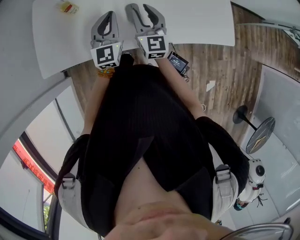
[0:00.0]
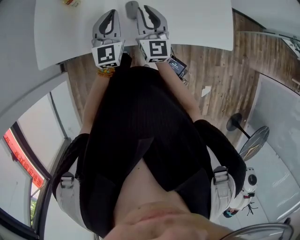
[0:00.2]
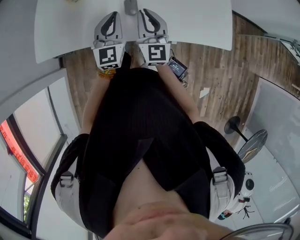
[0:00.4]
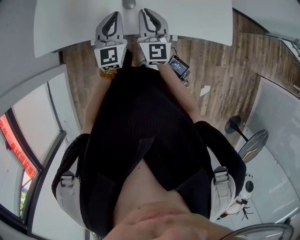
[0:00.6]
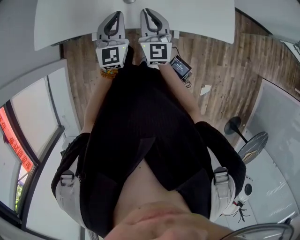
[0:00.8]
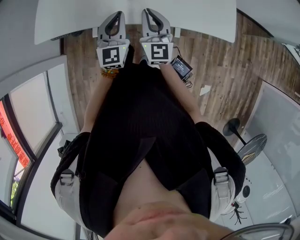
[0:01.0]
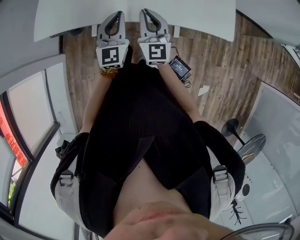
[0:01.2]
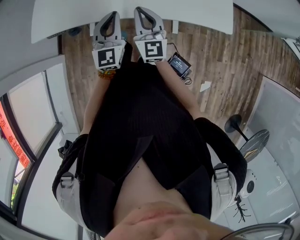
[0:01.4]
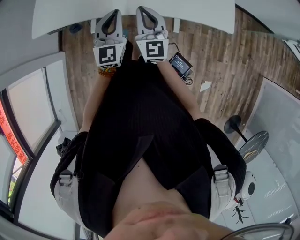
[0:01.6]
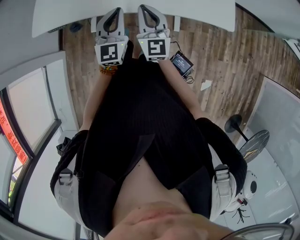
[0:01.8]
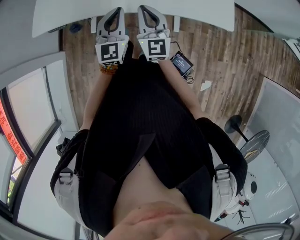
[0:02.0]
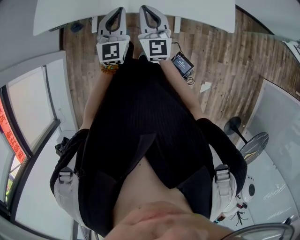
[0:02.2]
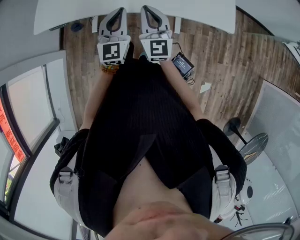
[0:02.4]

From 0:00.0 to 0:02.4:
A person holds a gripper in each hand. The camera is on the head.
From 0:00.0 to 0:01.2: Both grippers move backward, approximately 15 cm. The right gripper closes up.
From 0:01.2 to 0:02.4: The grippers move only a little.

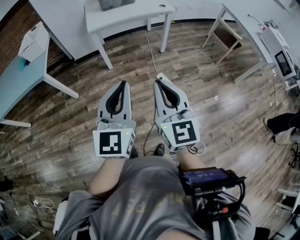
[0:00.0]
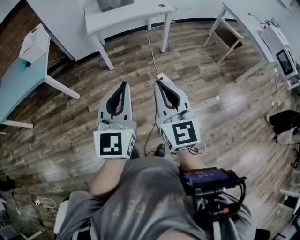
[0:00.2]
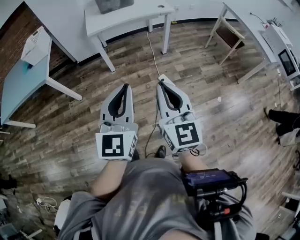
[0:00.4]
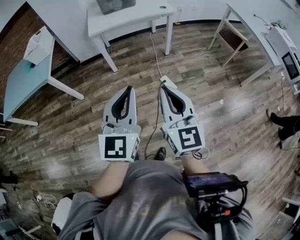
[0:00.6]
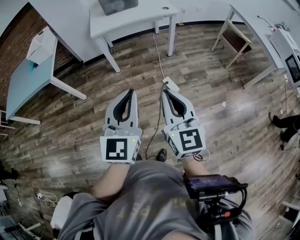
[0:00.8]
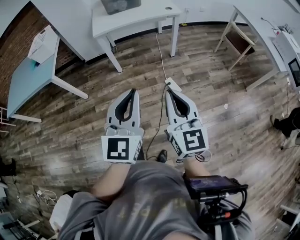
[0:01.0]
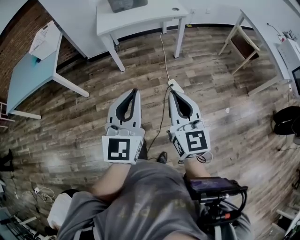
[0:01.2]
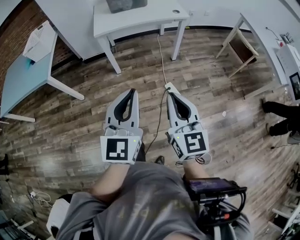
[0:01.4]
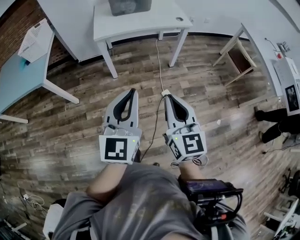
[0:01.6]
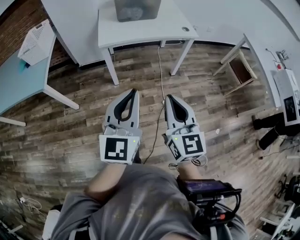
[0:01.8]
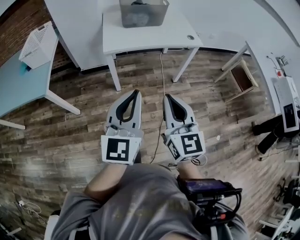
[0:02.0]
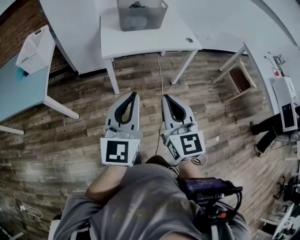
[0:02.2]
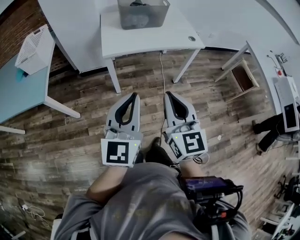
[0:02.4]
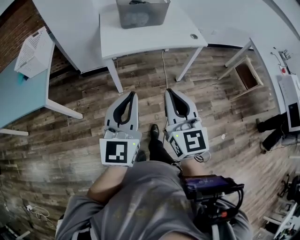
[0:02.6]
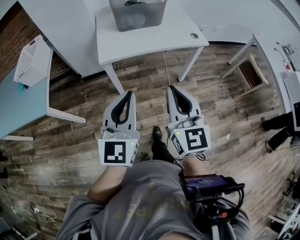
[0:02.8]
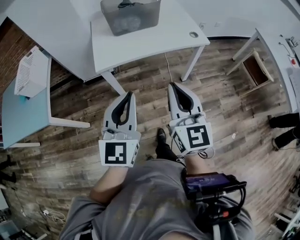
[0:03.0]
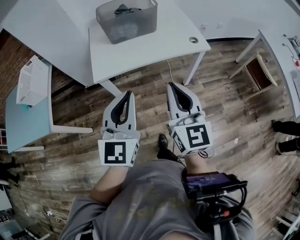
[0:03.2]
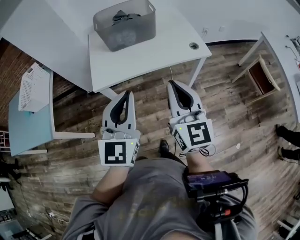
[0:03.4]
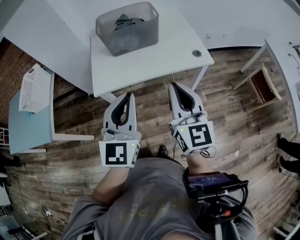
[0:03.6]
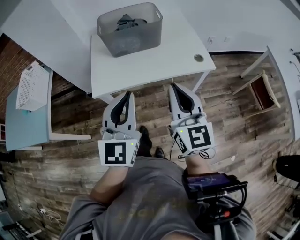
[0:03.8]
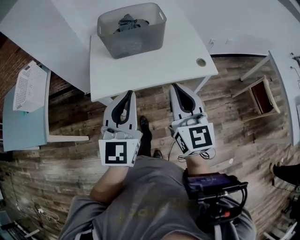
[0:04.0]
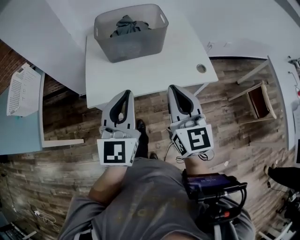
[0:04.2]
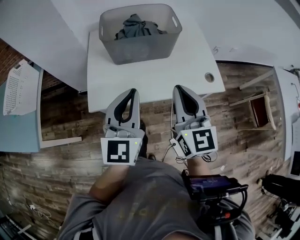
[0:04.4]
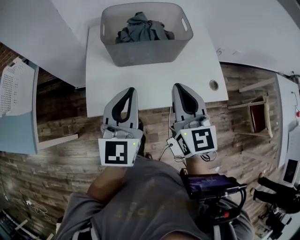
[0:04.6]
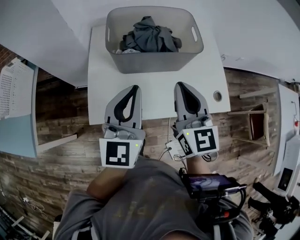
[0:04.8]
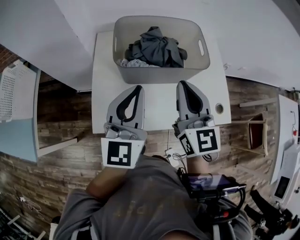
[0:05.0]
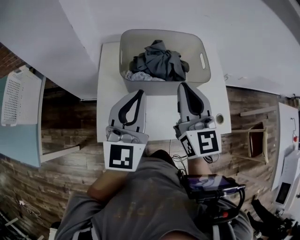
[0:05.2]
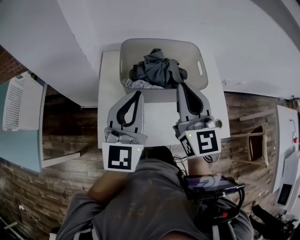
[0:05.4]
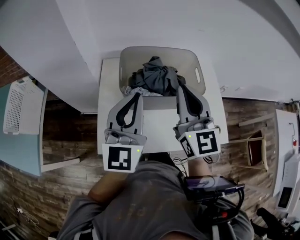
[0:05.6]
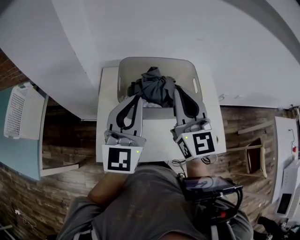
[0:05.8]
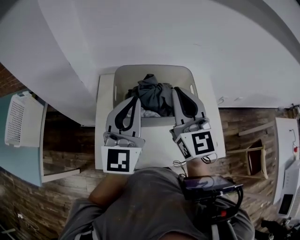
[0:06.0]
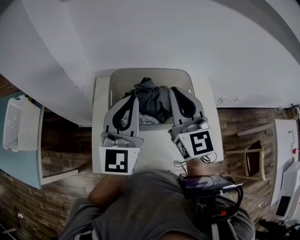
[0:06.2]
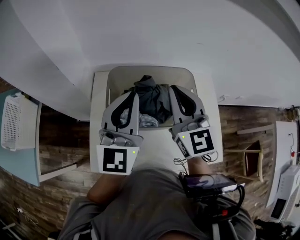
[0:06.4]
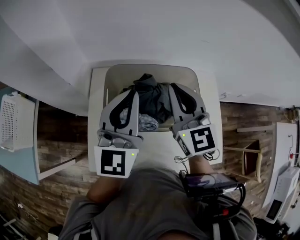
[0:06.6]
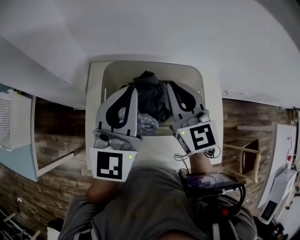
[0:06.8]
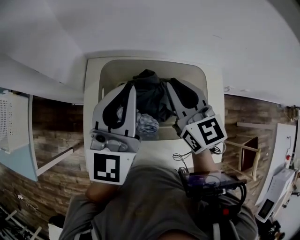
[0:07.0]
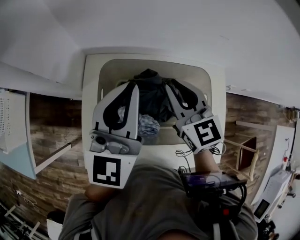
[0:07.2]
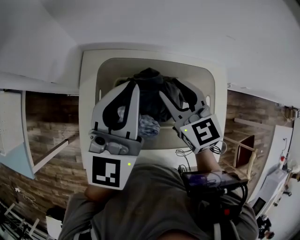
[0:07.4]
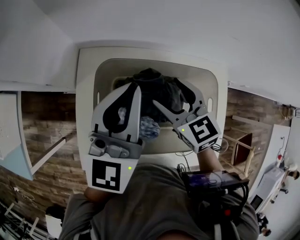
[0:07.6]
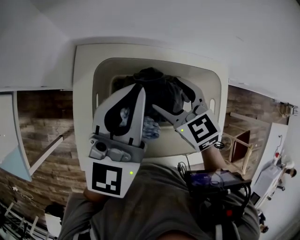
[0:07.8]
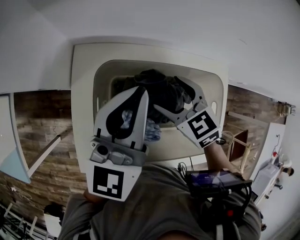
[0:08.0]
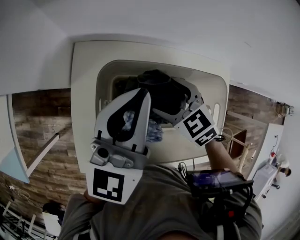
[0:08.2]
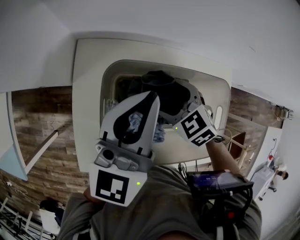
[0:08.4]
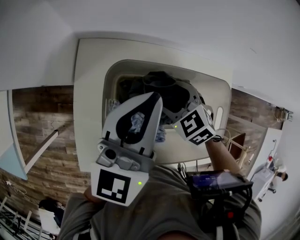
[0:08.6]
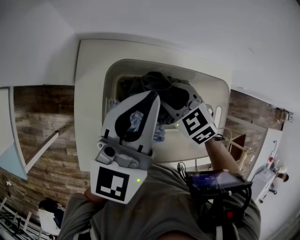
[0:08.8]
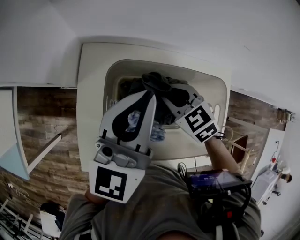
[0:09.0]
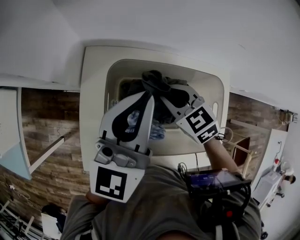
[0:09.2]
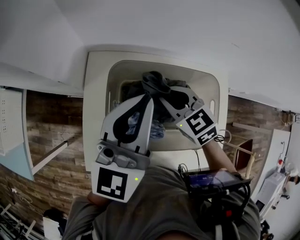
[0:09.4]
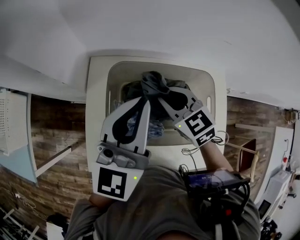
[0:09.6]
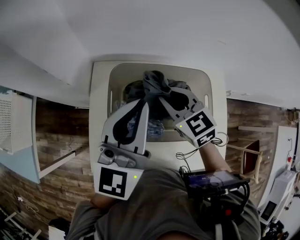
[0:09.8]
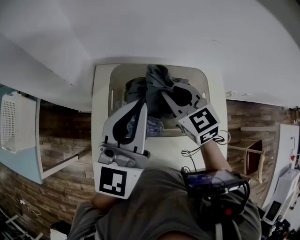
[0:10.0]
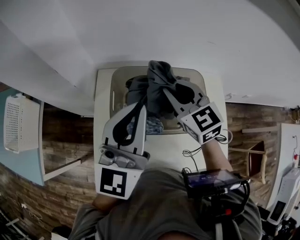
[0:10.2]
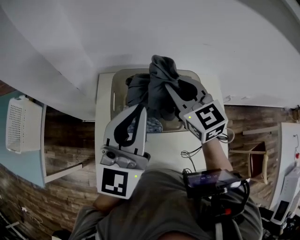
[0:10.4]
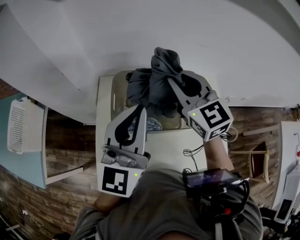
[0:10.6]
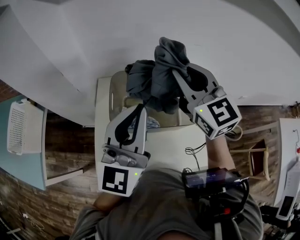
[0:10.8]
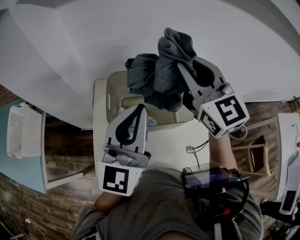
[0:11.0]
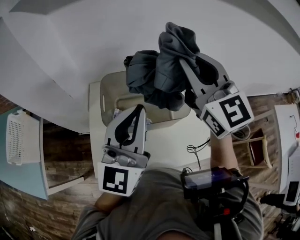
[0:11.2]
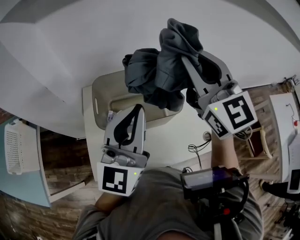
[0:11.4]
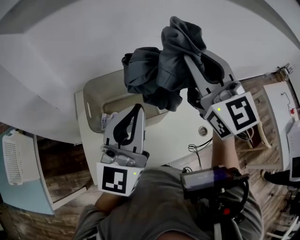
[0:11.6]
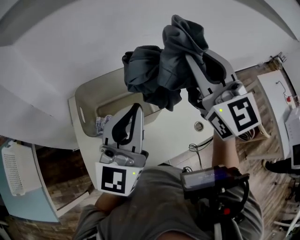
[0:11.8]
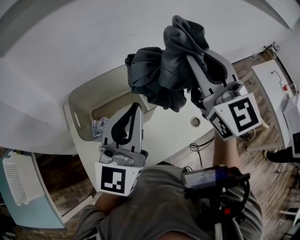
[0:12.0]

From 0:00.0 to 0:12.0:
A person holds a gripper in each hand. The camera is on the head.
From 0:00.0 to 0:01.6: The two grippers go roughly 15 cm forward.
From 0:01.6 to 0:03.0: The grippers both shift forward by roughly 25 cm.
From 0:03.0 to 0:04.4: Both grippers move forward, about 30 cm.
From 0:04.4 to 0:06.0: Both grippers travel together forward, approximately 25 cm.
From 0:06.0 to 0:07.6: The left gripper is displaced forward by approximately 15 cm. The right gripper heads downward and forward, covering about 25 cm, points its fingers some 40 degrees further downward, and opens up.
From 0:07.6 to 0:09.0: The right gripper is displaced downward by some 5 cm, turns by approximately 20 degrees, and closes its fingers.
From 0:09.0 to 0:10.4: The right gripper goes approximately 20 cm upward, and tips its fingers upward by roughly 40 degrees; the left gripper goes about 15 cm backward and upward.
From 0:10.4 to 0:12.0: The right gripper moves some 30 cm, and rotates roughly 40 degrees. Meanwhile the left gripper ends up roughly 15 cm from where it was, and changes its angle by approximately 20 degrees.

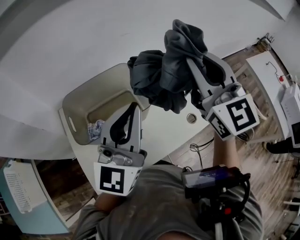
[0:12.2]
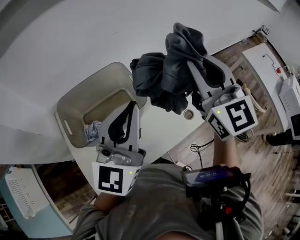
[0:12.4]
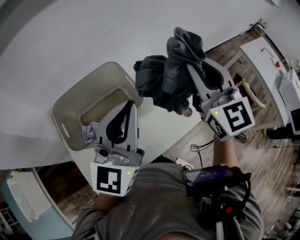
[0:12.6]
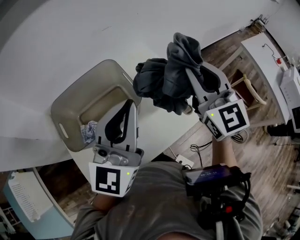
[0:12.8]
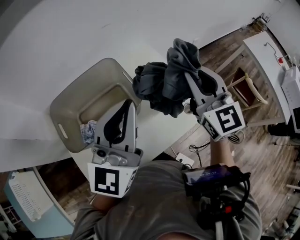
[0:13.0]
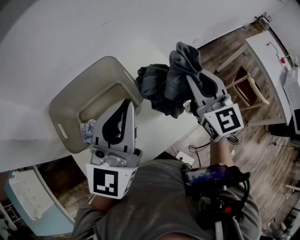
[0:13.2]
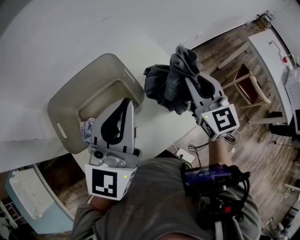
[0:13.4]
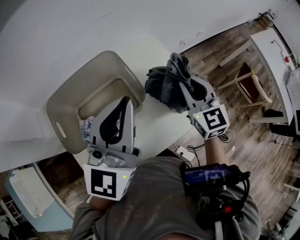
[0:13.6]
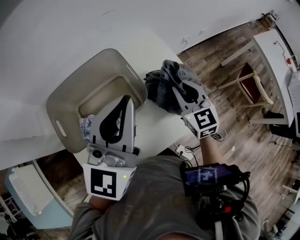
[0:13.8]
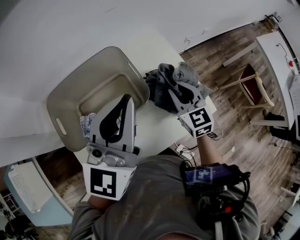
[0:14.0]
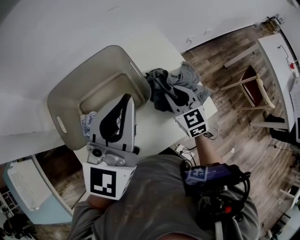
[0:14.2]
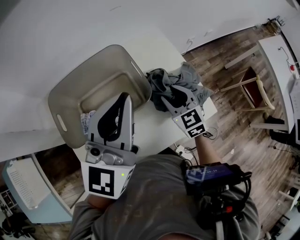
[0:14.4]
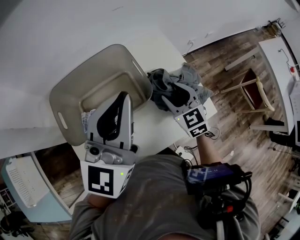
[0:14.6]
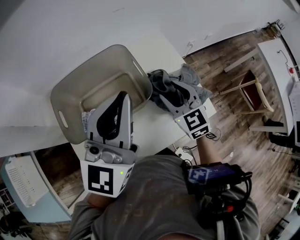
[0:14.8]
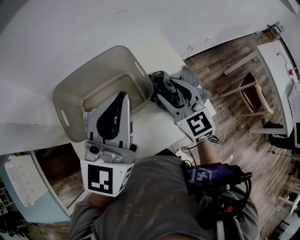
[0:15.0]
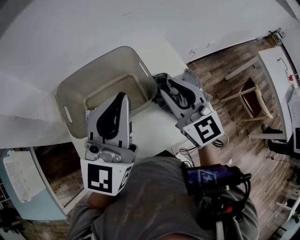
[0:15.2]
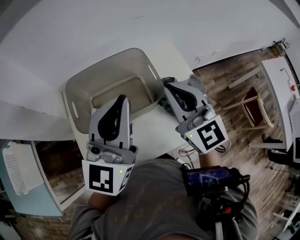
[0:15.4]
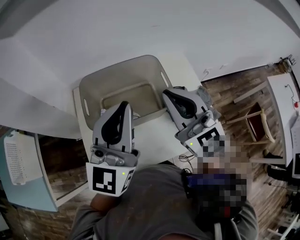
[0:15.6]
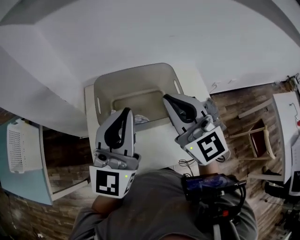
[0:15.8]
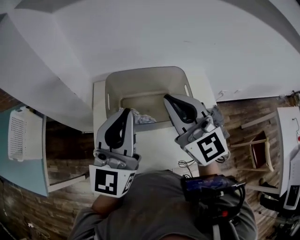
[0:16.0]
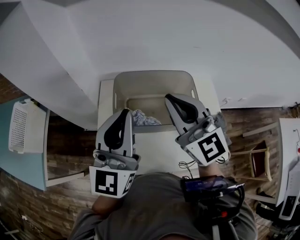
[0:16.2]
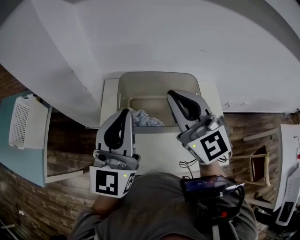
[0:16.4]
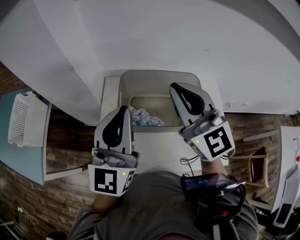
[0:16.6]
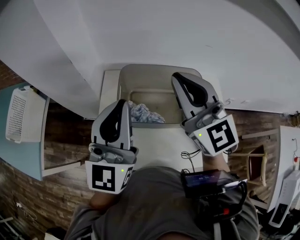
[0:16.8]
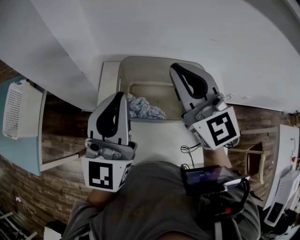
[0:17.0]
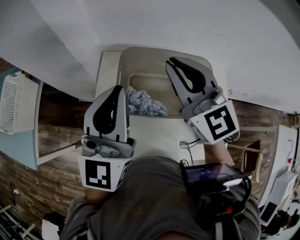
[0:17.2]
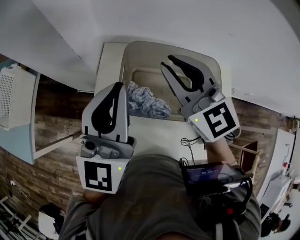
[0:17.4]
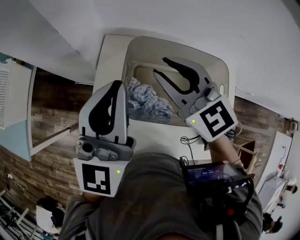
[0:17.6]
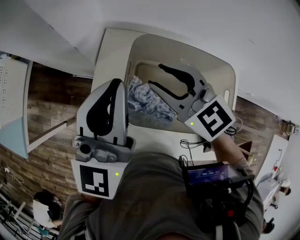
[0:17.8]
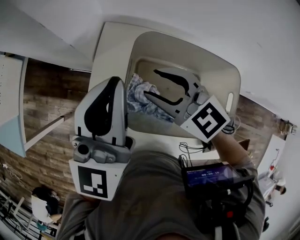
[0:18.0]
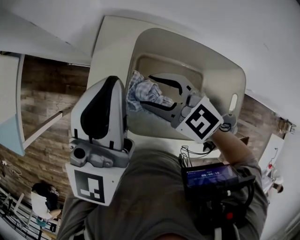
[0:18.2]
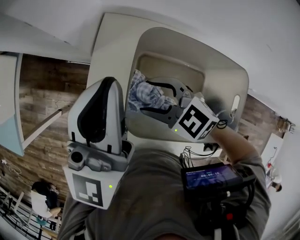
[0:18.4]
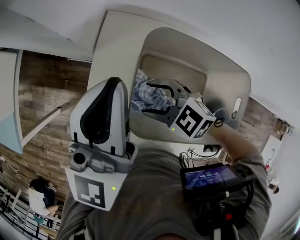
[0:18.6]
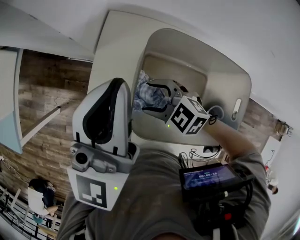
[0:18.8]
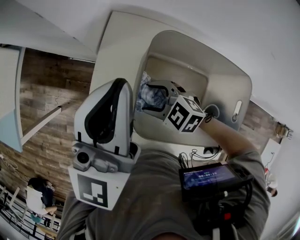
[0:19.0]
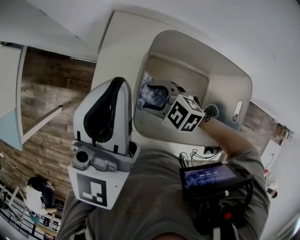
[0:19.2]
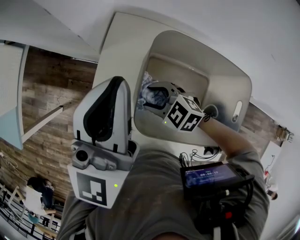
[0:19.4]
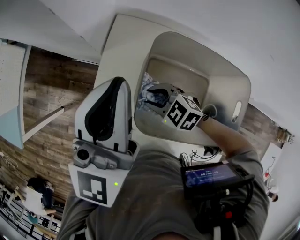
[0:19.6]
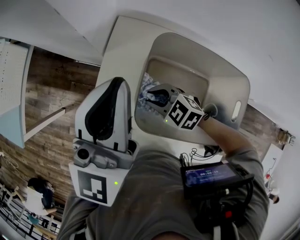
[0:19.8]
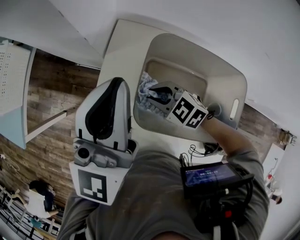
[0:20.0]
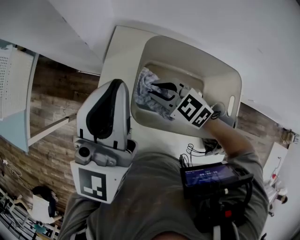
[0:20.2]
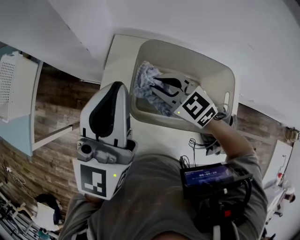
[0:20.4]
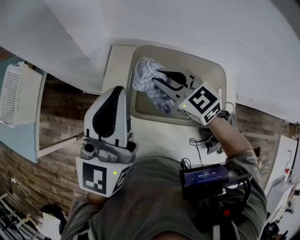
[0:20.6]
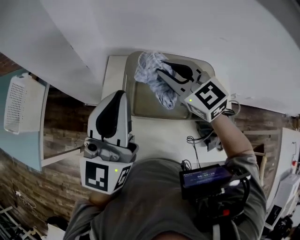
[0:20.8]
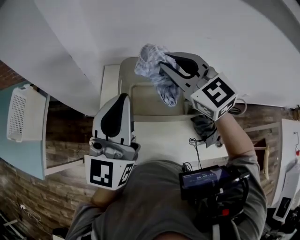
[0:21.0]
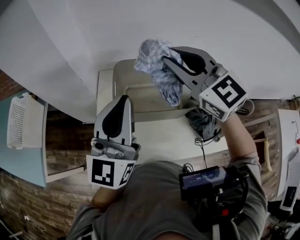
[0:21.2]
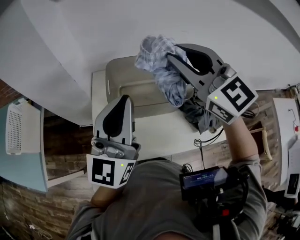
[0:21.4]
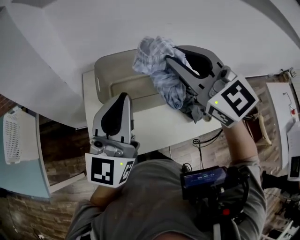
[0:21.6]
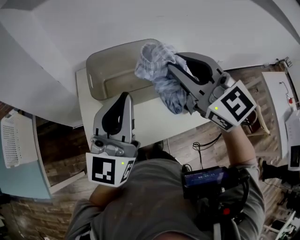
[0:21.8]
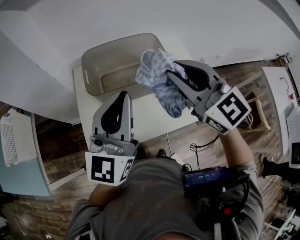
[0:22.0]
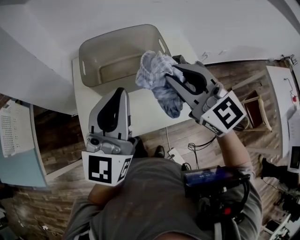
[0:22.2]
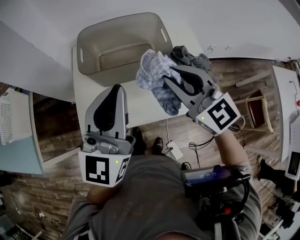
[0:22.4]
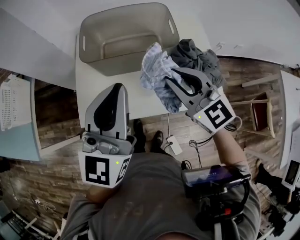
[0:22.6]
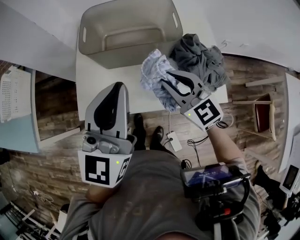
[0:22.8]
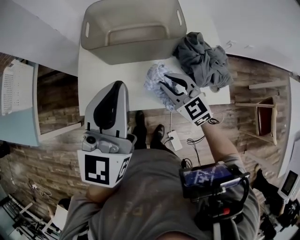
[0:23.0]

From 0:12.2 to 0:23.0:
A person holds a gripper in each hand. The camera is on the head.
From 0:12.2 to 0:13.8: The right gripper heads downward, covering roughly 30 cm, and swivels roughly 20 degrees, while the left gripper travels forward by about 5 cm.
From 0:13.8 to 0:15.2: The right gripper shifts some 15 cm upward and to the left, and changes its angle by some 20 degrees; the left gripper moves some 5 cm.
From 0:15.2 to 0:16.8: The right gripper changes place by some 25 cm, and rotates about 30 degrees, while the left gripper shifts by some 20 cm, and rotates some 30 degrees.
From 0:16.8 to 0:18.4: The left gripper ends up about 15 cm from where it was; the right gripper is displaced downward by about 30 cm, angles its fingers downward, by approximately 50 degrees, and opens.
From 0:18.4 to 0:20.0: The right gripper moves downward, about 5 cm, and closes its fingers.
From 0:20.0 to 0:21.4: The right gripper is displaced upward by approximately 35 cm, and points its fingers some 40 degrees further upward; the left gripper moves about 15 cm, and turns by approximately 30 degrees.
From 0:21.4 to 0:23.0: The right gripper heads downward and backward, covering some 35 cm, and changes its angle by about 20 degrees; the left gripper shifts approximately 15 cm backward, to the right and downward.
